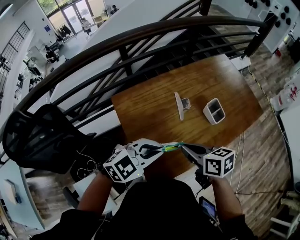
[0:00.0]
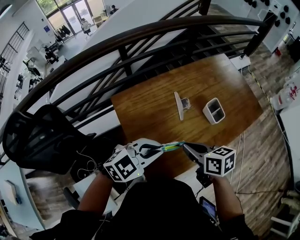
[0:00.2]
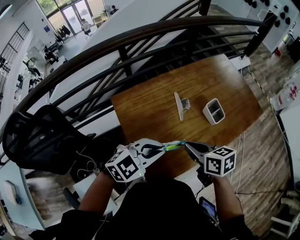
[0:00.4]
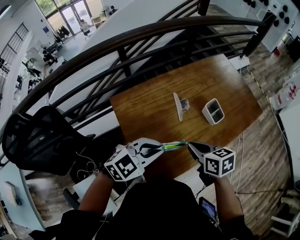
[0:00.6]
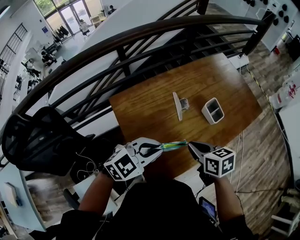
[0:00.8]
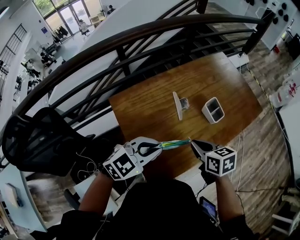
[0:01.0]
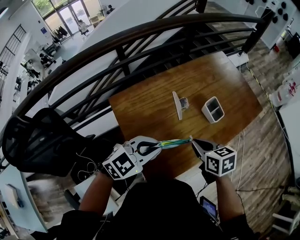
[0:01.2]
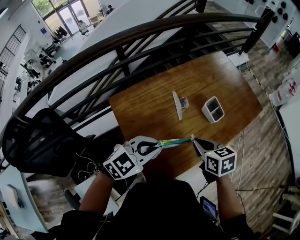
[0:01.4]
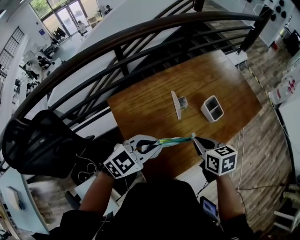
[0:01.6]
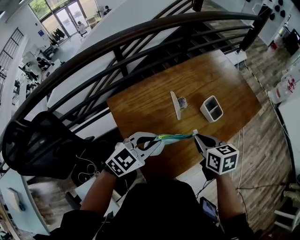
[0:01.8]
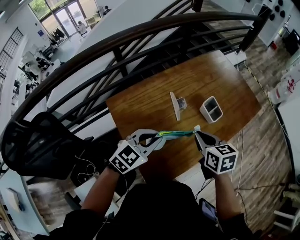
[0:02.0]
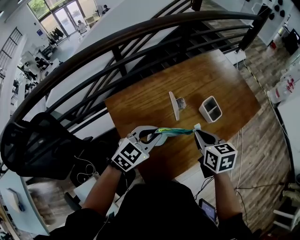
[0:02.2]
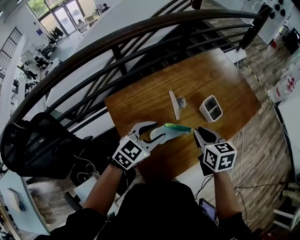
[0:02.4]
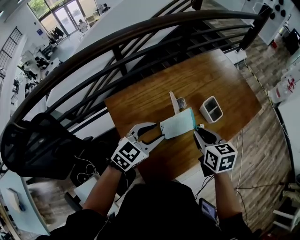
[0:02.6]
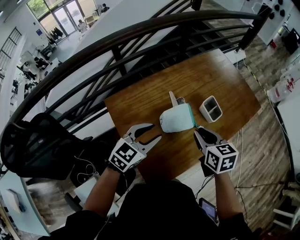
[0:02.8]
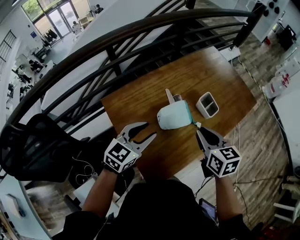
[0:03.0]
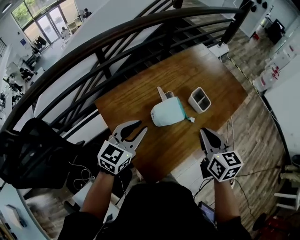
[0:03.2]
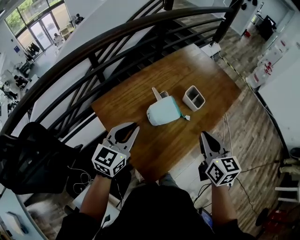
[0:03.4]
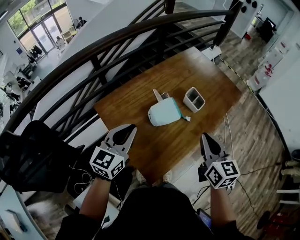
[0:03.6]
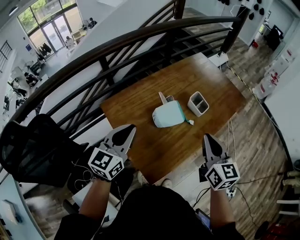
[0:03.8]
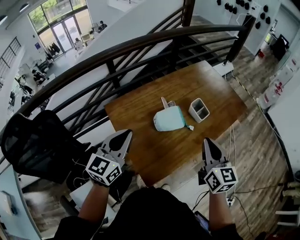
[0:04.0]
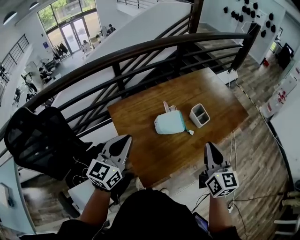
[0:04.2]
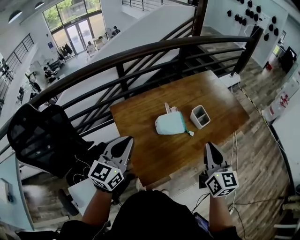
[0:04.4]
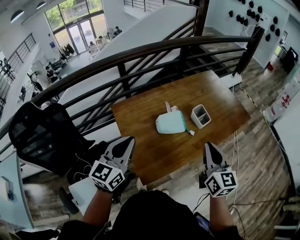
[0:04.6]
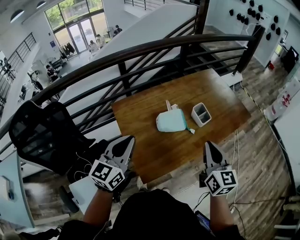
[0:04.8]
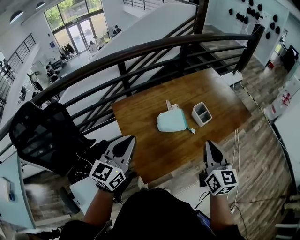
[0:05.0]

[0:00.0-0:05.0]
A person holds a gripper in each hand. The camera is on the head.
0:00.0 to 0:01.6: The right gripper moves to the right, approximately 5 cm.
0:01.6 to 0:03.4: The right gripper goes approximately 10 cm upward and to the right, and swivels about 30 degrees. Meanwhile the left gripper is displaced to the left by approximately 5 cm, swivels about 30 degrees, and opens, then closes once more.
0:03.4 to 0:05.0: The left gripper moves backward and upward, about 15 cm, and rotates about 20 degrees, while the right gripper changes place by about 5 cm.

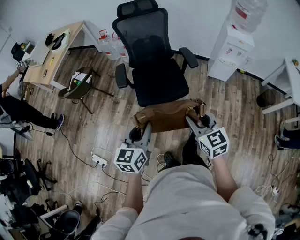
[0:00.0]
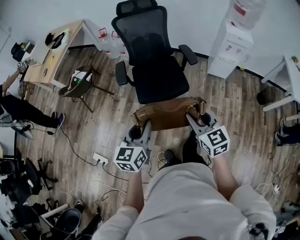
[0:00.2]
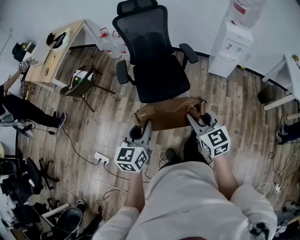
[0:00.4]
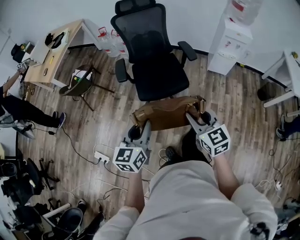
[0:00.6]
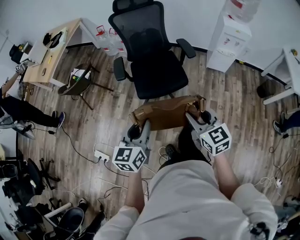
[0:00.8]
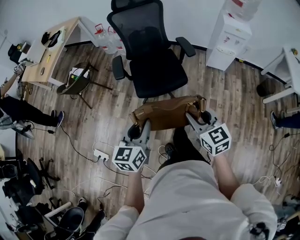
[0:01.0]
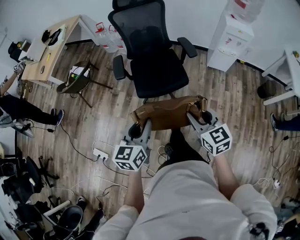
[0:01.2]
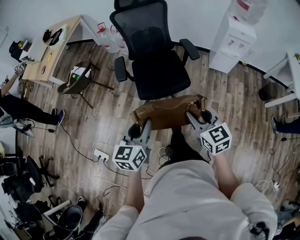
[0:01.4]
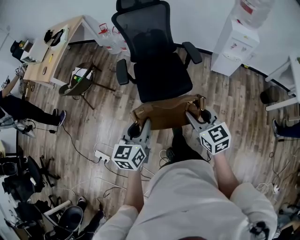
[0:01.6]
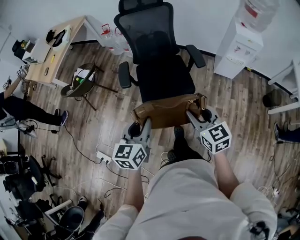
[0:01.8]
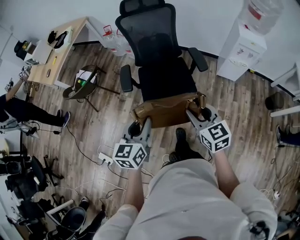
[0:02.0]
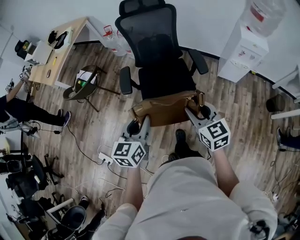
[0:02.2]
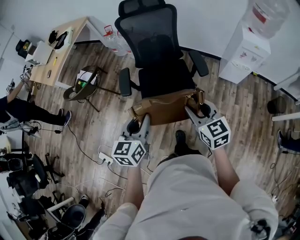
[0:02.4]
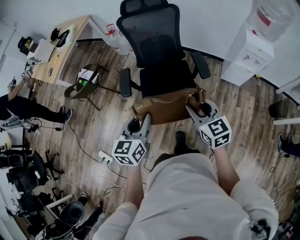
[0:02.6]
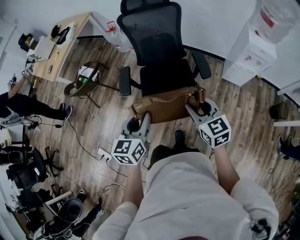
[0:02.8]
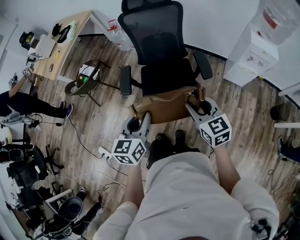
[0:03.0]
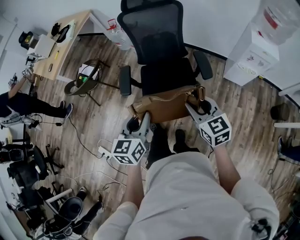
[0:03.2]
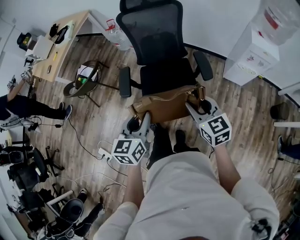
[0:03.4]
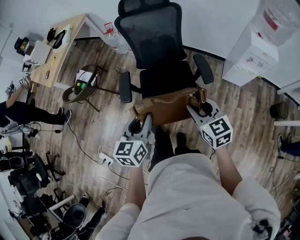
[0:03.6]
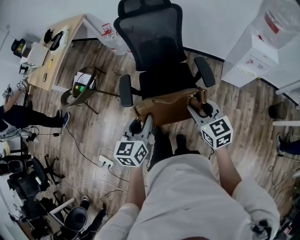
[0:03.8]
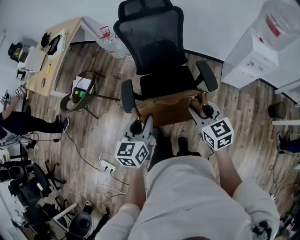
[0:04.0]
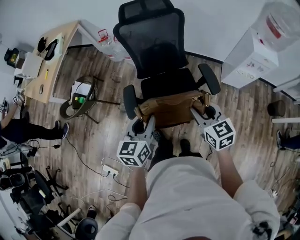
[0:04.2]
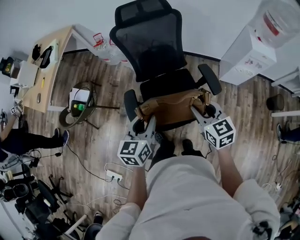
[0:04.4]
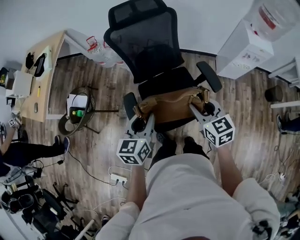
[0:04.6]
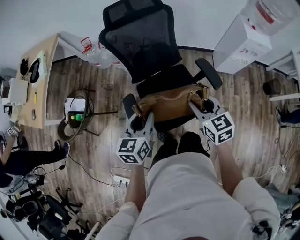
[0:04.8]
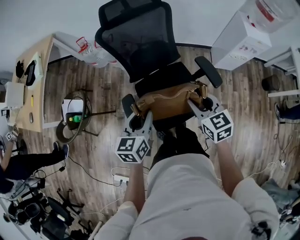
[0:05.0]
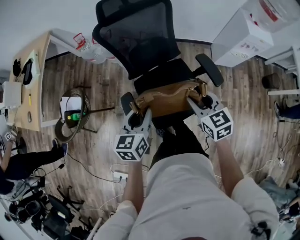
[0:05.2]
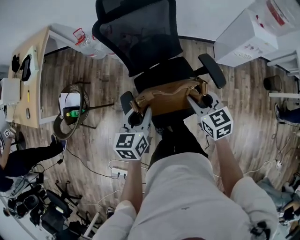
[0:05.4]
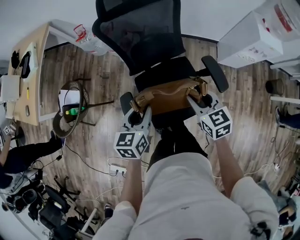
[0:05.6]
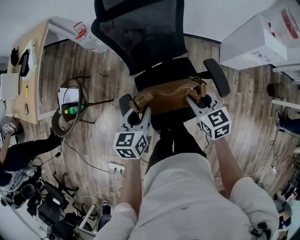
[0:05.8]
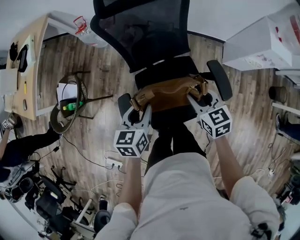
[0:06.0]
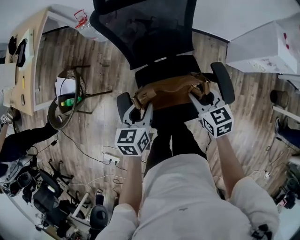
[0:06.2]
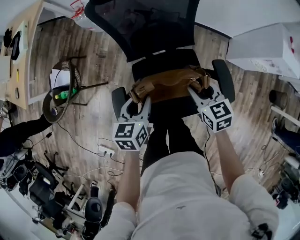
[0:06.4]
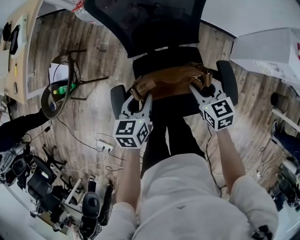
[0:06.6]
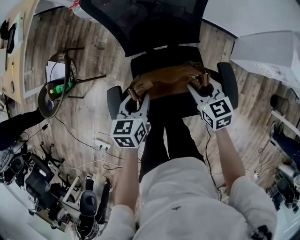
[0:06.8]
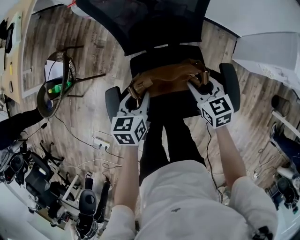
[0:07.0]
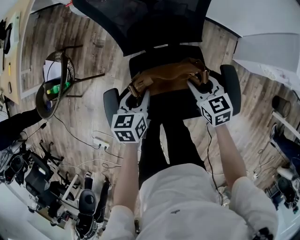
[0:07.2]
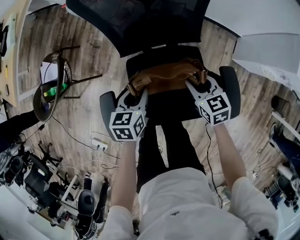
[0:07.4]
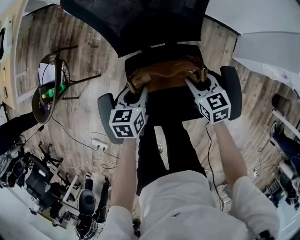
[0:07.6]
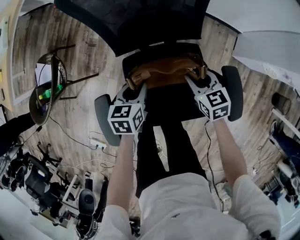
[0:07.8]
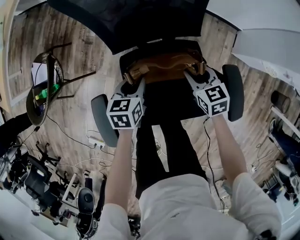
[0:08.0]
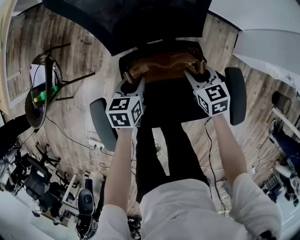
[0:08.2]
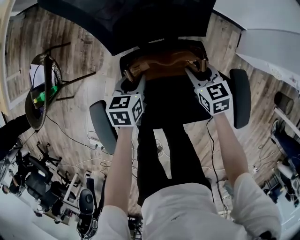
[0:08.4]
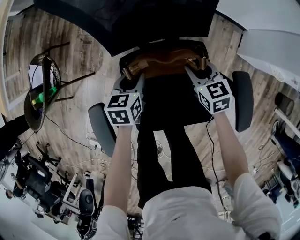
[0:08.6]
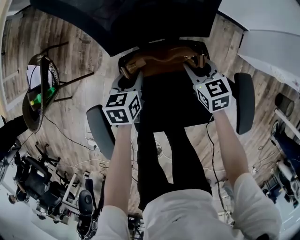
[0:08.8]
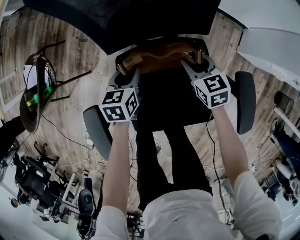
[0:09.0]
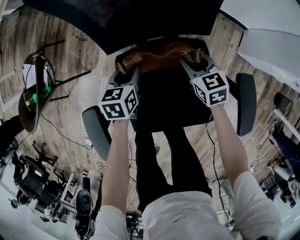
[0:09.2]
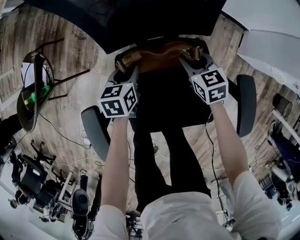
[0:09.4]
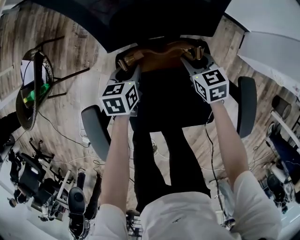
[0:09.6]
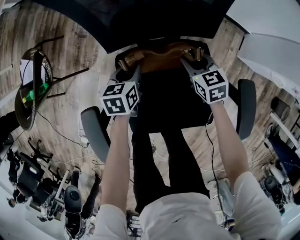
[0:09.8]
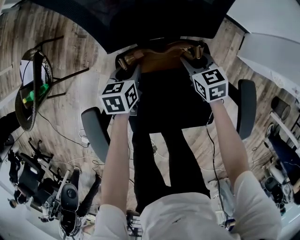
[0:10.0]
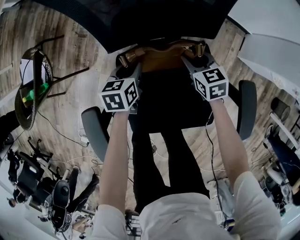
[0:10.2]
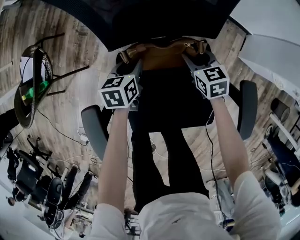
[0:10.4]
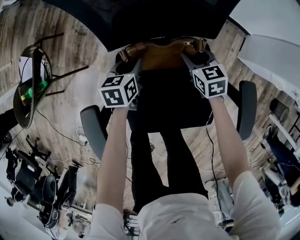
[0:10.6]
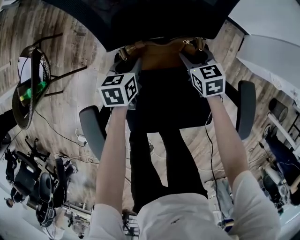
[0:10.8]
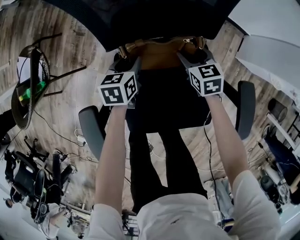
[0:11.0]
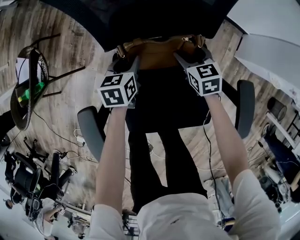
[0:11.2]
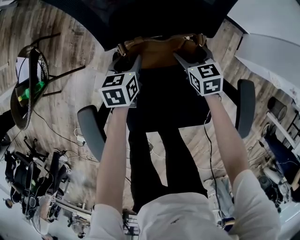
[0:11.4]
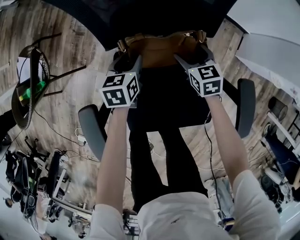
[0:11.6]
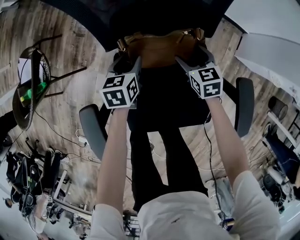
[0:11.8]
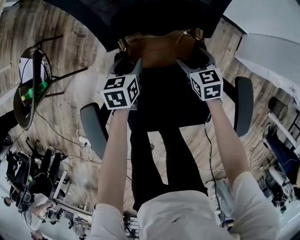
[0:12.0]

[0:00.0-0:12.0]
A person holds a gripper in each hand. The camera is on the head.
0:00.0 to 0:01.6: The grippers stay close to where they were, moving slightly.
0:01.6 to 0:03.0: Both grippers travel together forward, about 15 cm.
0:03.0 to 0:04.4: The two grippers go about 20 cm forward and to the left.
0:04.4 to 0:06.0: The two grippers go approximately 20 cm forward and downward.
0:06.0 to 0:07.6: Both grippers travel together downward and forward, roughly 20 cm.
0:07.6 to 0:09.0: The grippers both shift downward and forward by about 15 cm.
0:09.0 to 0:10.4: The grippers make only small movements.
0:10.4 to 0:12.0: The right gripper opens up.

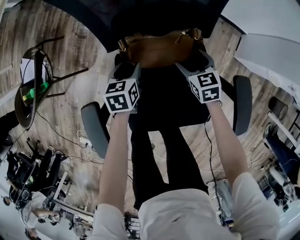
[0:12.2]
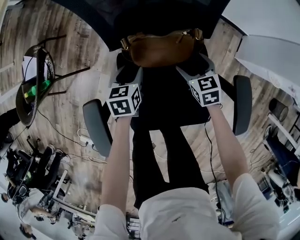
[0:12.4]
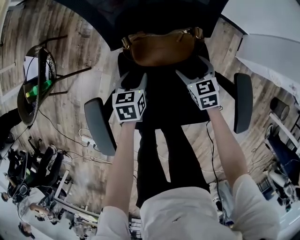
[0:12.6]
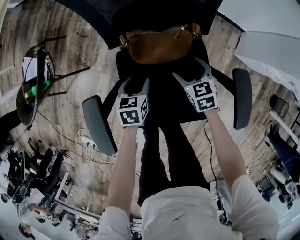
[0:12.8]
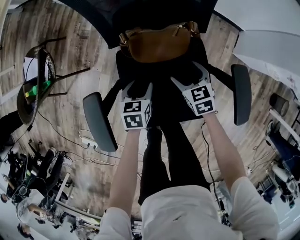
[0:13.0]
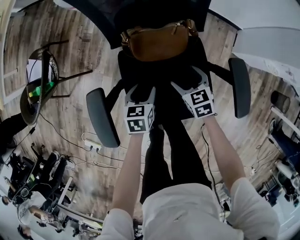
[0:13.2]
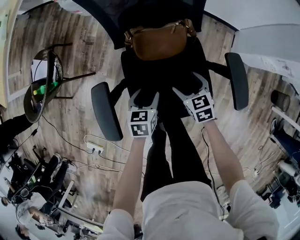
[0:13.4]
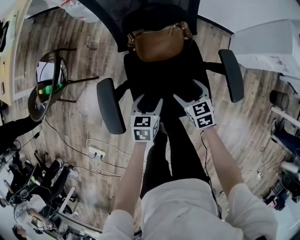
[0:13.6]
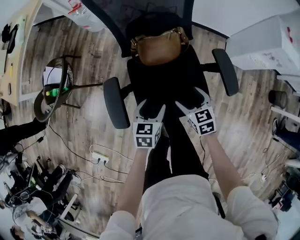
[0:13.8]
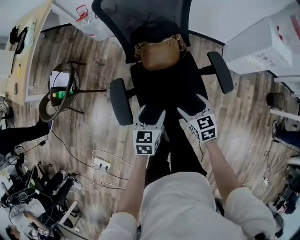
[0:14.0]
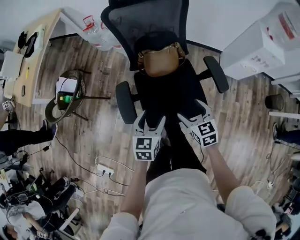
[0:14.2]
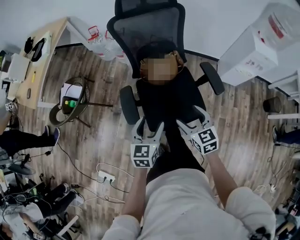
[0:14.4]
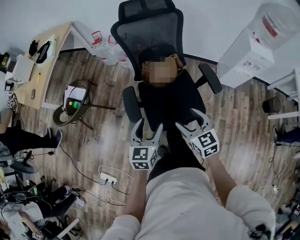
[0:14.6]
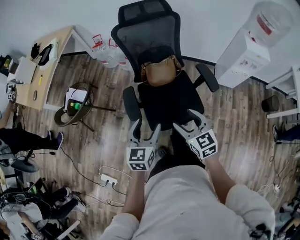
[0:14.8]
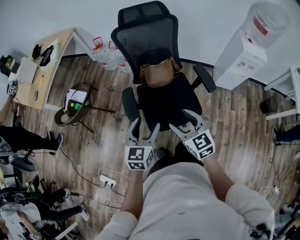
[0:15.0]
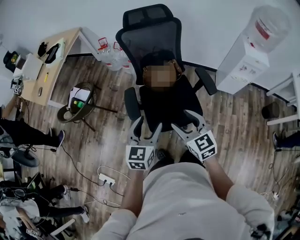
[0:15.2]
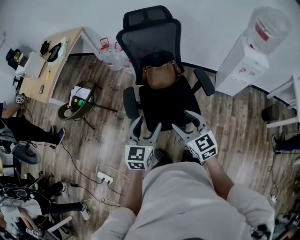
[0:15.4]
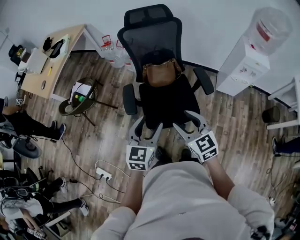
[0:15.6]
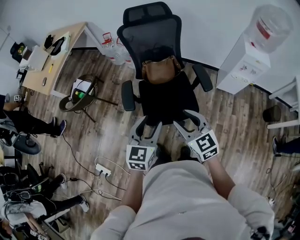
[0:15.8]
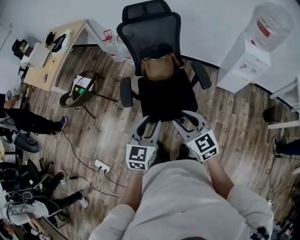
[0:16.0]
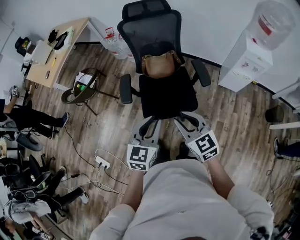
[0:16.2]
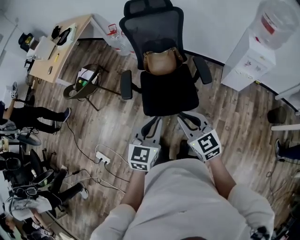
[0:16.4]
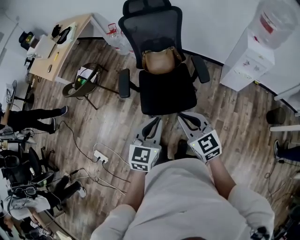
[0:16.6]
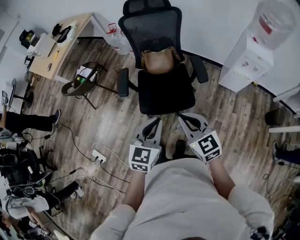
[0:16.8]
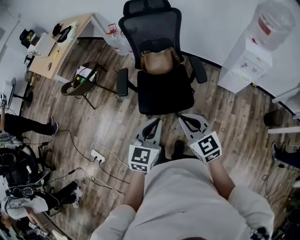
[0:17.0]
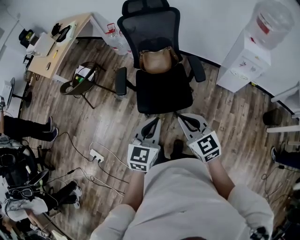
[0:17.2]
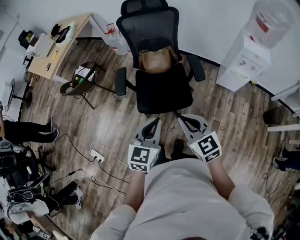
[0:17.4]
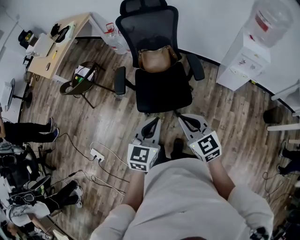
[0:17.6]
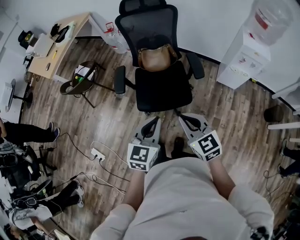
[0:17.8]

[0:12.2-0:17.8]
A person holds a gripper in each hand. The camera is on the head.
0:12.2 to 0:13.6: The grippers both shift backward and upward by some 20 cm.
0:13.6 to 0:15.0: The two grippers go approximately 35 cm upward and backward. The right gripper swivels approximately 30 degrees; the left gripper swivels roughly 30 degrees.
0:15.0 to 0:16.4: Both grippers travel together to the right and backward, about 15 cm. The left gripper closes up. Meanwhile the right gripper closes its fingers.
0:16.4 to 0:17.8: The right gripper shifts by roughly 5 cm. Meanwhile the left gripper shifts by about 5 cm.

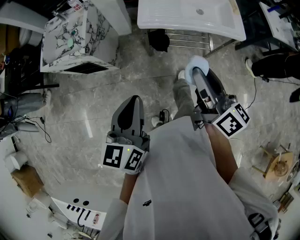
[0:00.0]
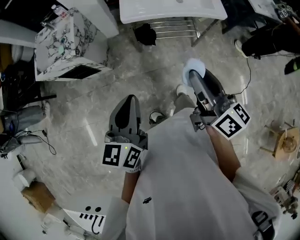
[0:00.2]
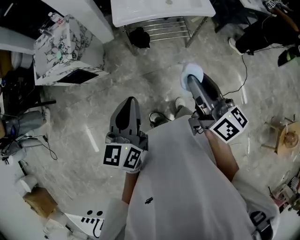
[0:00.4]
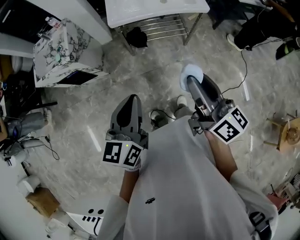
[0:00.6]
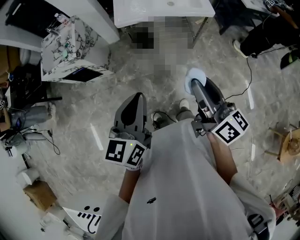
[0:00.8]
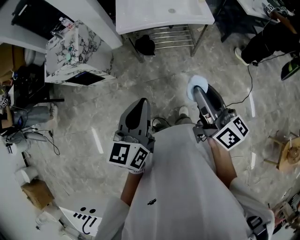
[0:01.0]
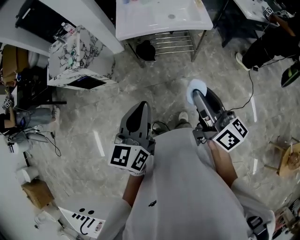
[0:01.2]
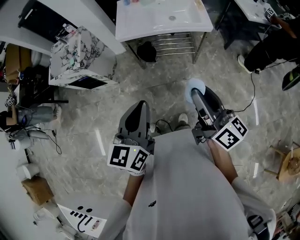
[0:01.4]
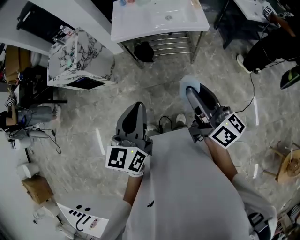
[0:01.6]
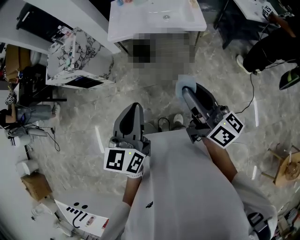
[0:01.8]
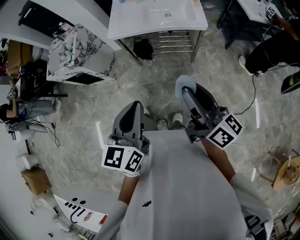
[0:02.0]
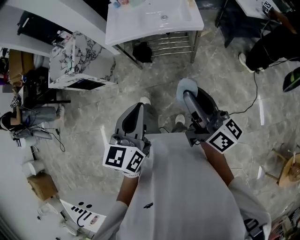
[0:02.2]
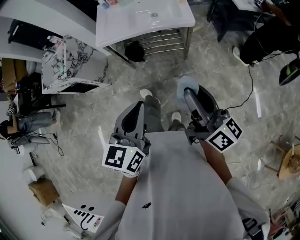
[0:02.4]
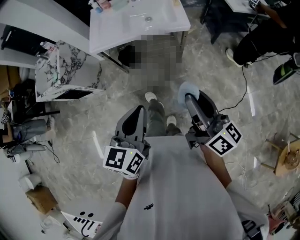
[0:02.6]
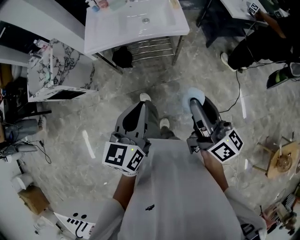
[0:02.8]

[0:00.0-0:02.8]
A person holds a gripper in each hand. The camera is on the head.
0:00.0 to 0:01.4: Both grippers move to the right and backward, some 25 cm.
0:01.4 to 0:02.8: Both grippers travel together to the right and forward, some 15 cm.
